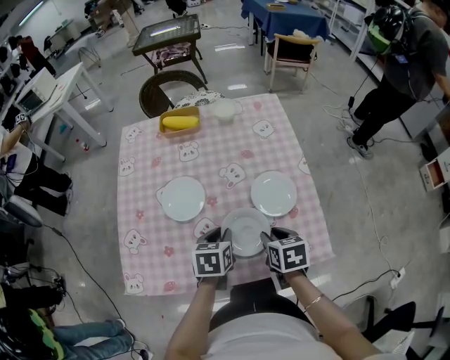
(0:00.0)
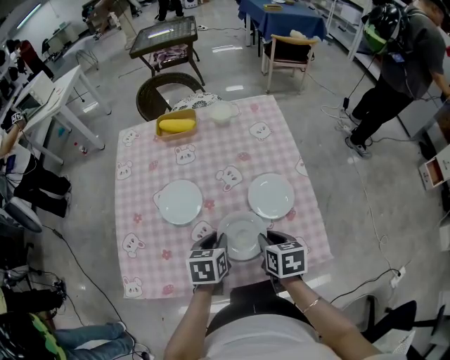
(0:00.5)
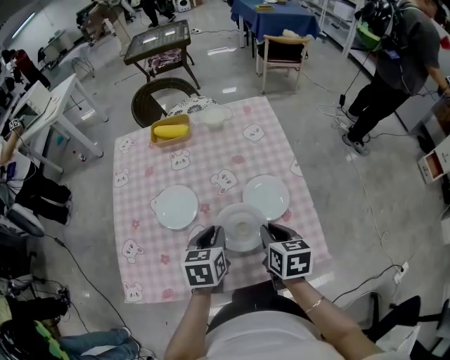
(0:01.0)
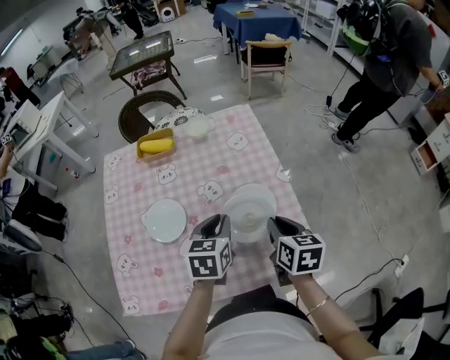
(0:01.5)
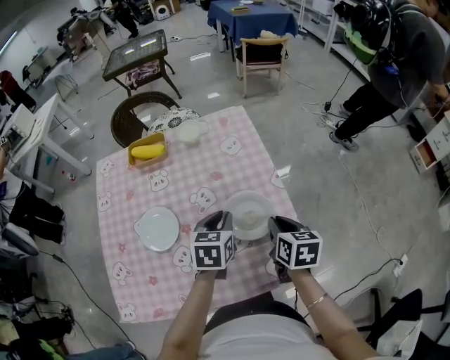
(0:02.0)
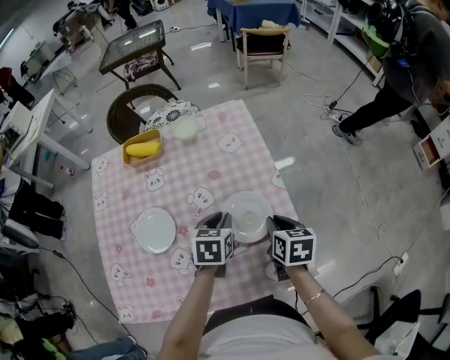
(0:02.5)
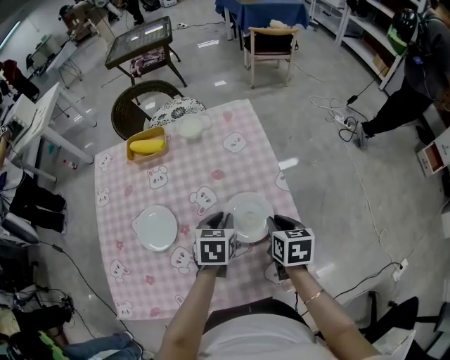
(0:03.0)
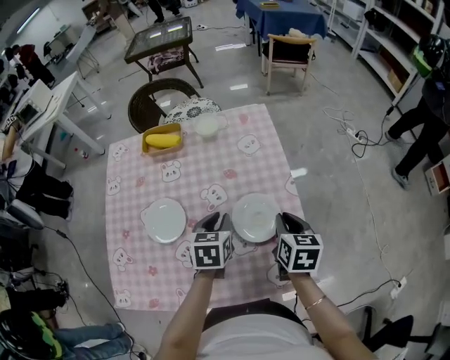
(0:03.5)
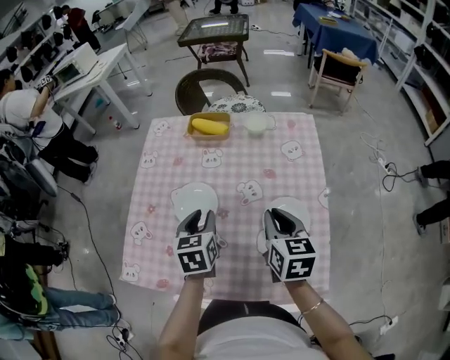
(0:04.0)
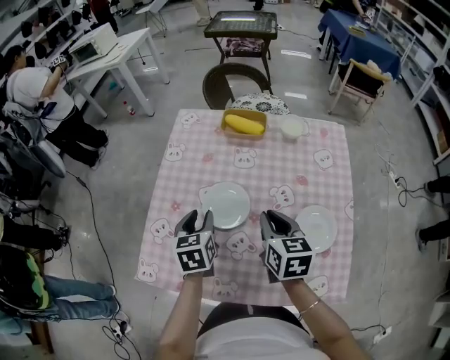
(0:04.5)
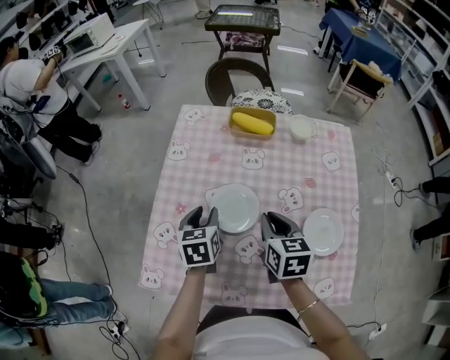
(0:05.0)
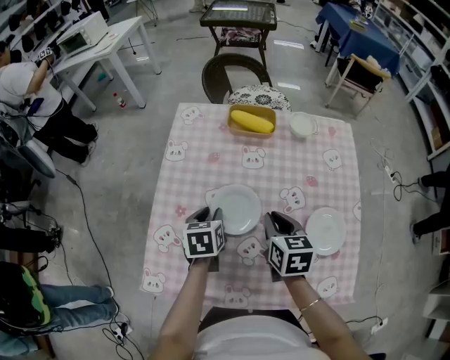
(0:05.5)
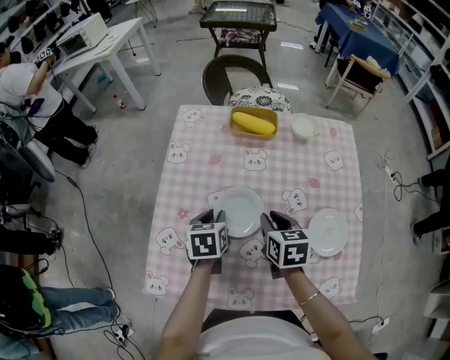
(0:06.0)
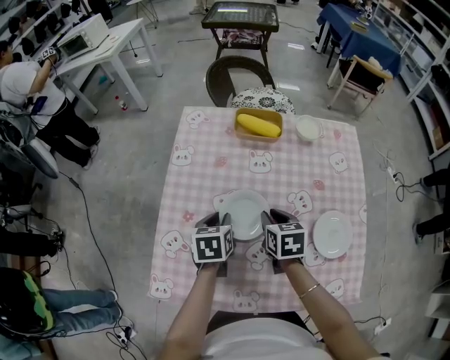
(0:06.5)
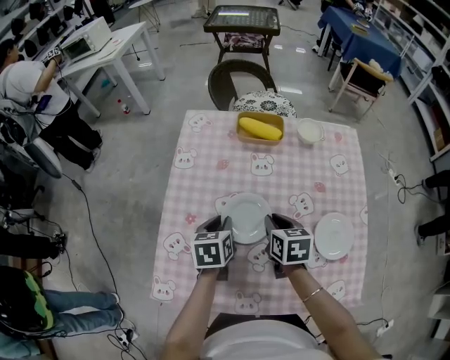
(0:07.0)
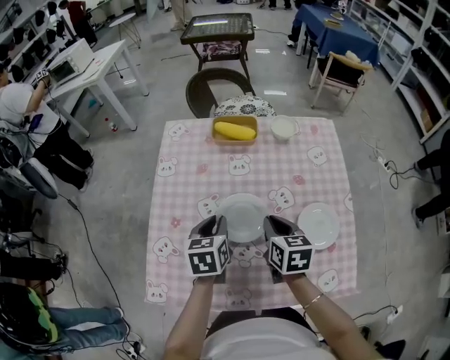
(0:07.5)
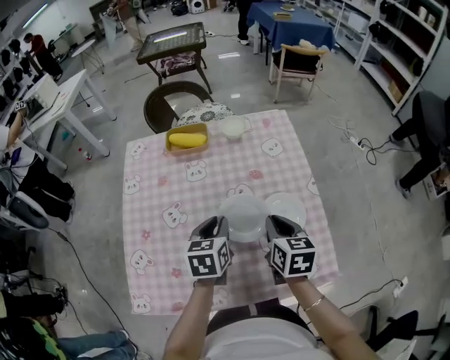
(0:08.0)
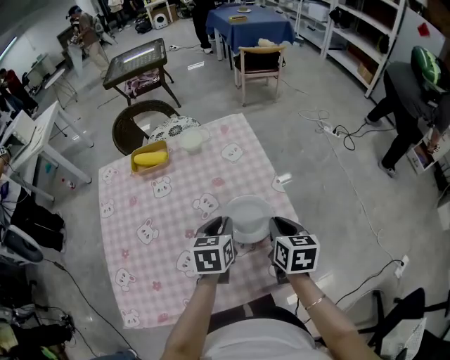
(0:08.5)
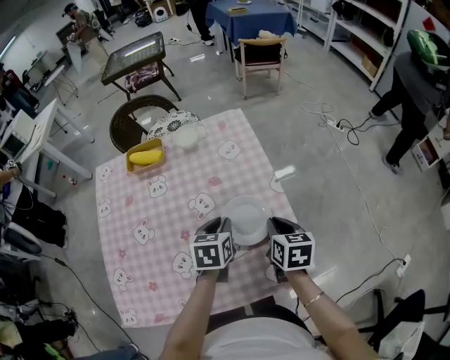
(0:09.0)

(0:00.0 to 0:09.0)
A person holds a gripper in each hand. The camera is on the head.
0:00.0 - 0:02.0: Both grippers move to the right, forward and upward, approximately 15 cm. The right gripper swivels about 20 degrees, and closes up.
0:02.0 - 0:04.5: The right gripper shifts by about 25 cm, and changes its angle by about 30 degrees, while the left gripper changes place by approximately 30 cm, and turns by roughly 40 degrees.
0:04.5 - 0:07.0: The left gripper goes about 5 cm downward, while the right gripper goes some 10 cm downward, forward and to the left.
0:07.0 - 0:09.0: The right gripper moves roughly 35 cm, and changes its angle by roughly 30 degrees, while the left gripper ends up approximately 35 cm from where it was, and turns by roughly 30 degrees.

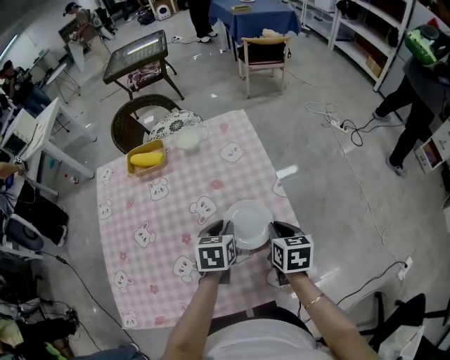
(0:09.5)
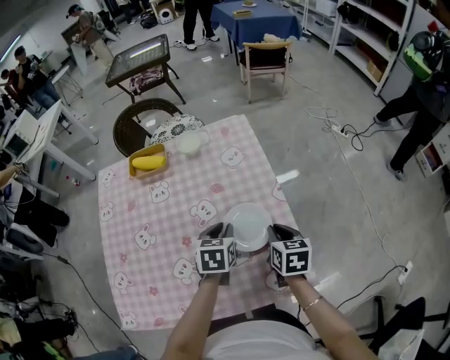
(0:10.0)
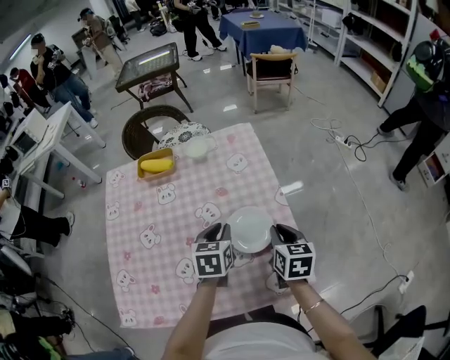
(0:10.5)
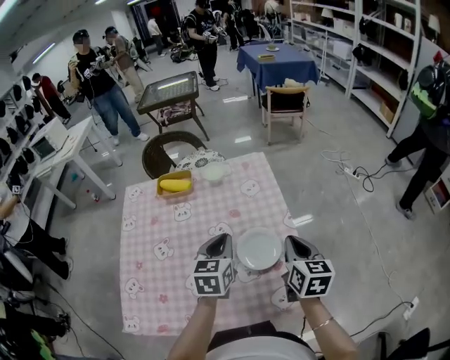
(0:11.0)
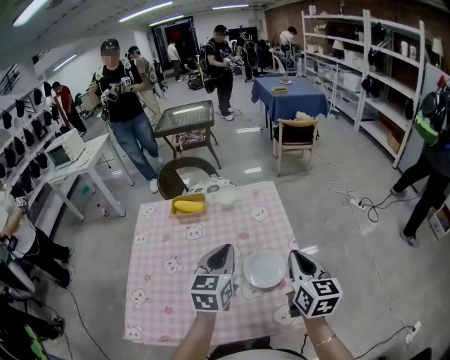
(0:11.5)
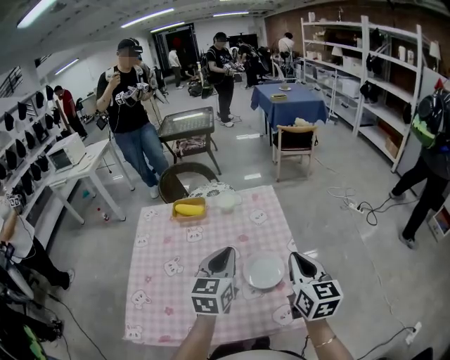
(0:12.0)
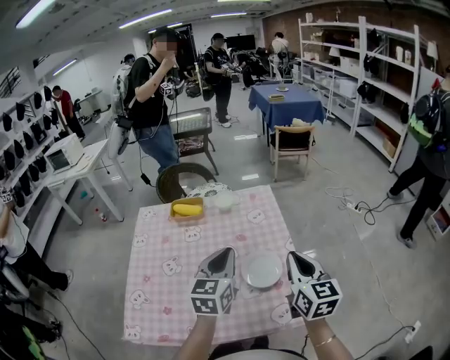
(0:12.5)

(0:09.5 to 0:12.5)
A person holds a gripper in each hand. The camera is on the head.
0:09.5 - 0:11.0: Both grippers move upward, approximately 10 cm. The left gripper changes its angle by approximately 20 degrees, while the right gripper swivels roughly 20 degrees.
0:11.0 - 0:12.5: Both grippers move upward, approximately 10 cm.

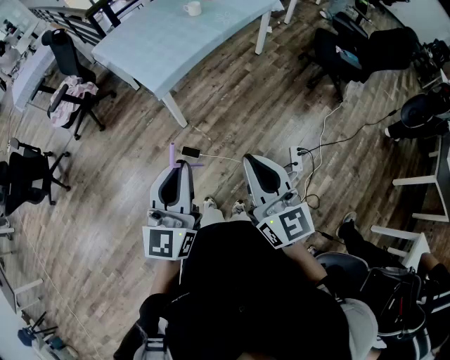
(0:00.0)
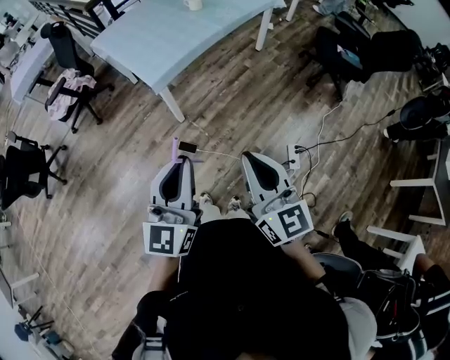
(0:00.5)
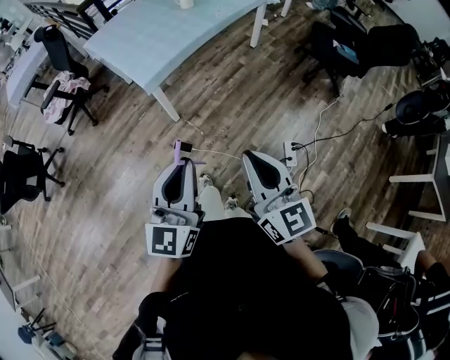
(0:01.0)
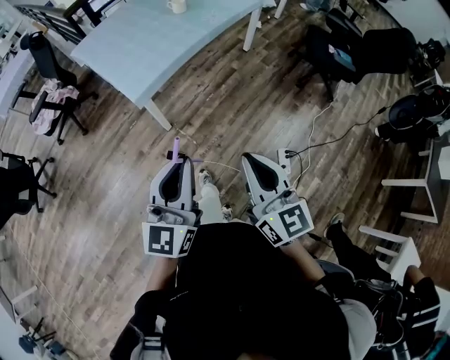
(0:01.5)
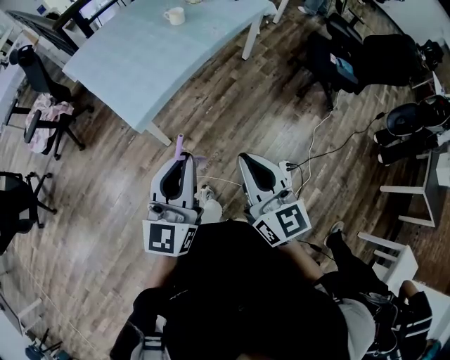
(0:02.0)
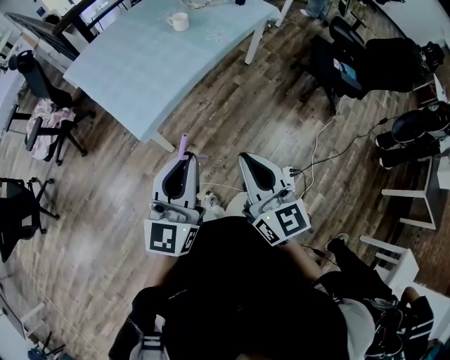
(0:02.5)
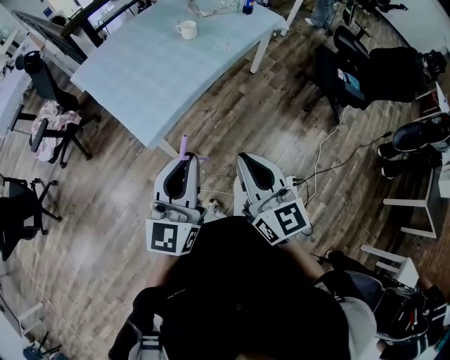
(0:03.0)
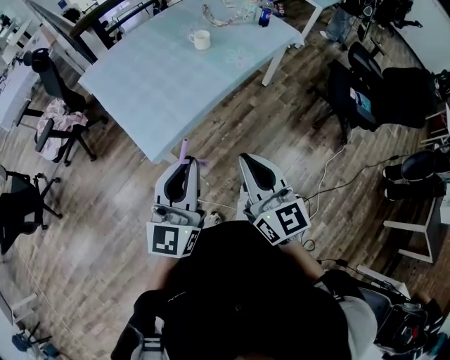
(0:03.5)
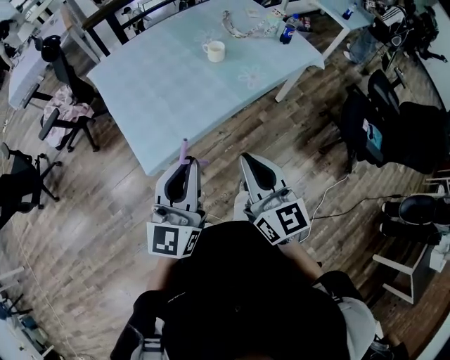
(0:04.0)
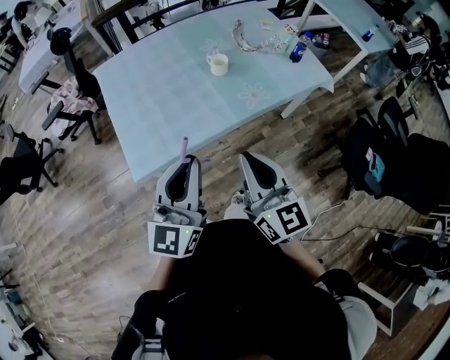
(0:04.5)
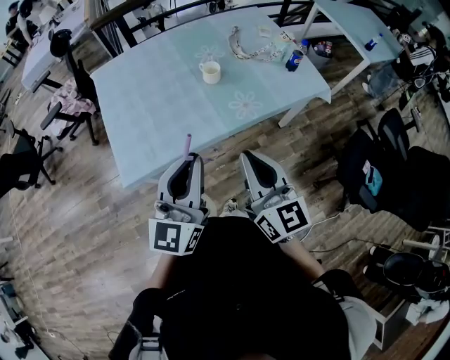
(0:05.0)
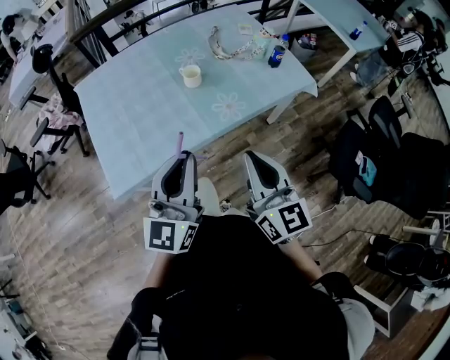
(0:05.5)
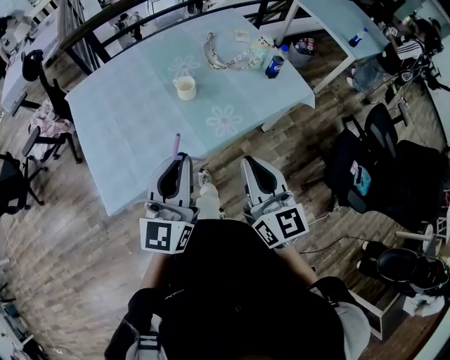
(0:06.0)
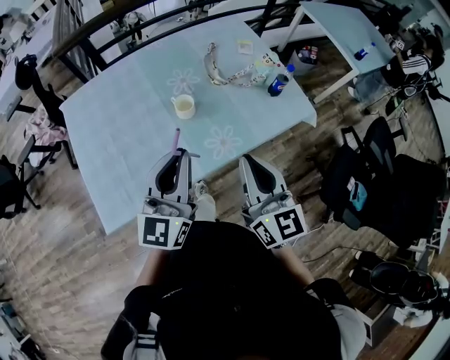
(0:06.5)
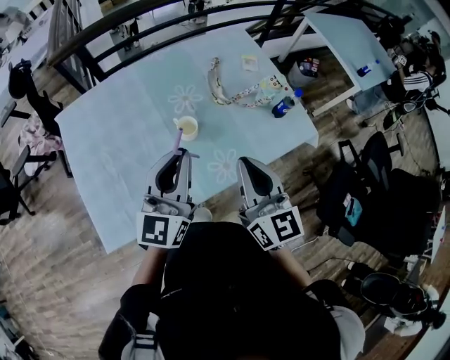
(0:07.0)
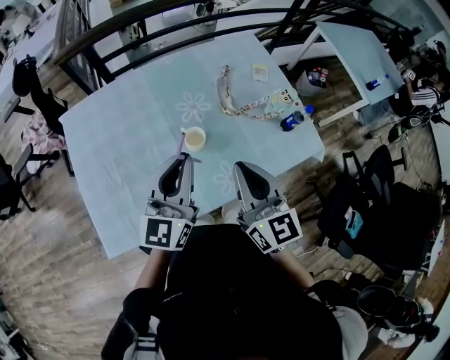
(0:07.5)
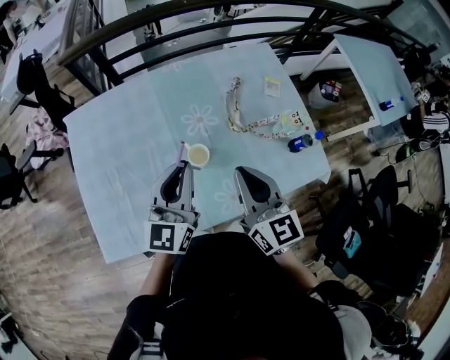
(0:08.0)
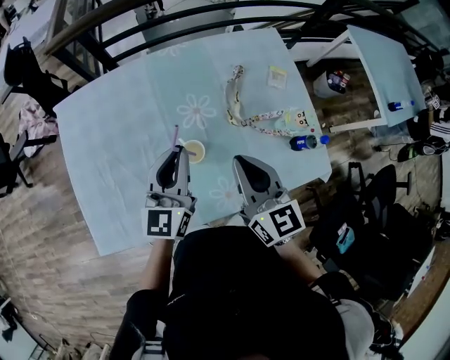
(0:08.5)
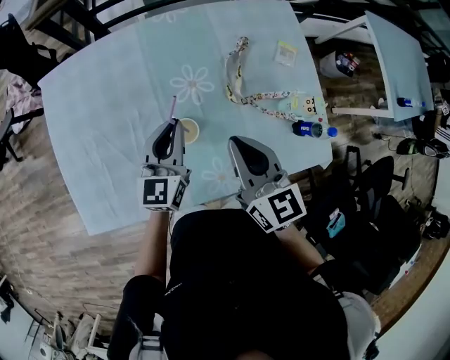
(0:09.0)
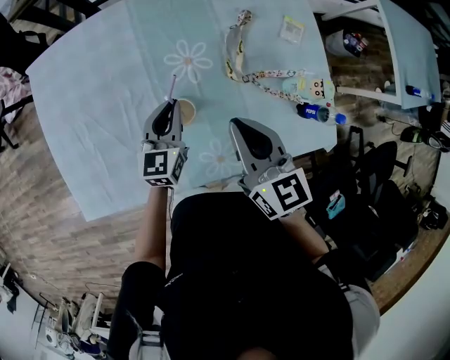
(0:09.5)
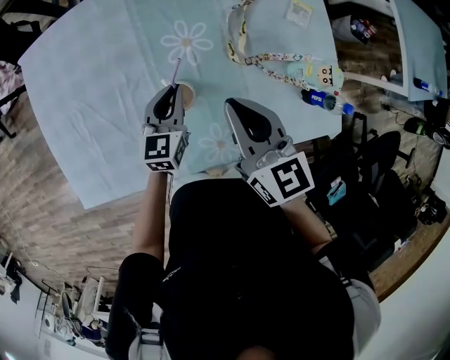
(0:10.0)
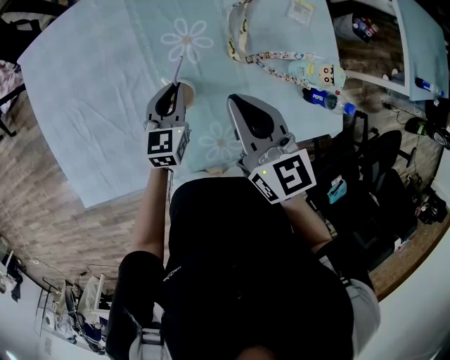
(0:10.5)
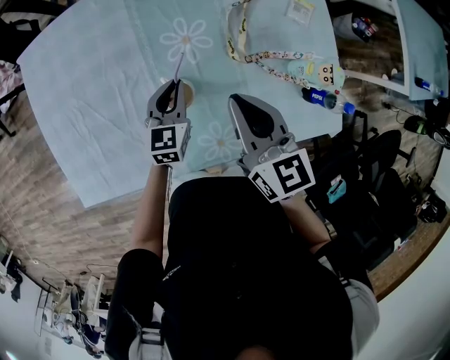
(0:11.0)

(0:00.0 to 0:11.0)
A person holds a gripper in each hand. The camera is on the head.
0:00.0 - 0:02.0: The two grippers go approximately 25 cm forward.
0:02.0 - 0:03.5: The grippers both shift forward by approximately 15 cm.
0:03.5 - 0:05.5: The grippers both shift forward and to the right by about 35 cm.
0:05.5 - 0:07.5: Both grippers travel together forward, some 30 cm.
0:07.5 - 0:09.0: Both grippers move forward and downward, approximately 20 cm. The left gripper swivels approximately 20 degrees.
0:09.0 - 0:11.0: The right gripper changes place by approximately 5 cm, while the left gripper moves downward, about 15 cm.

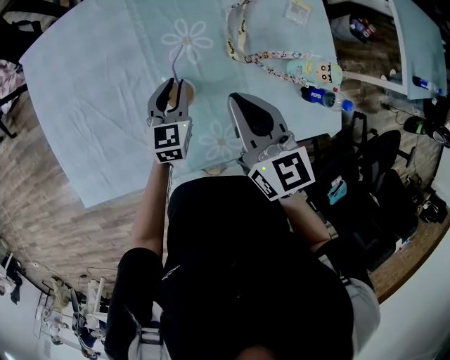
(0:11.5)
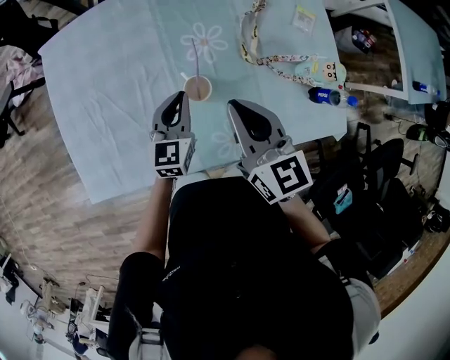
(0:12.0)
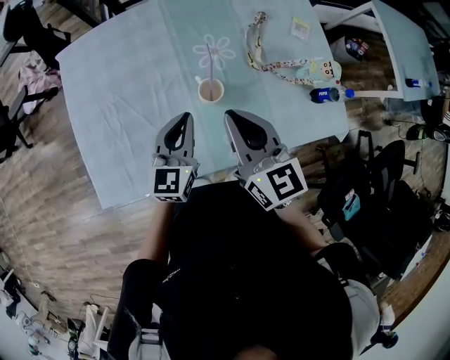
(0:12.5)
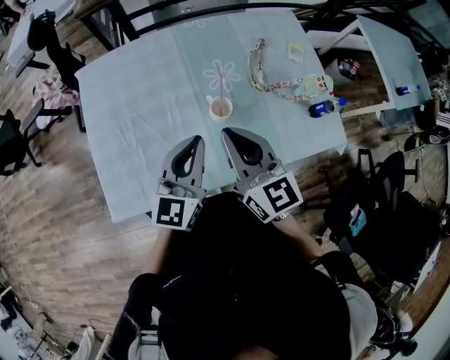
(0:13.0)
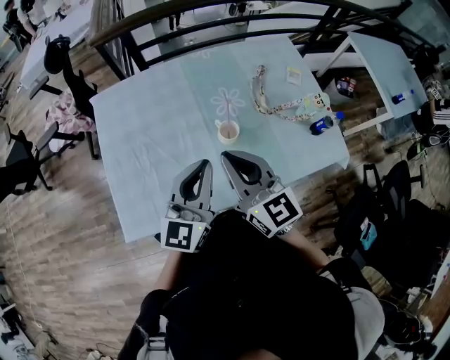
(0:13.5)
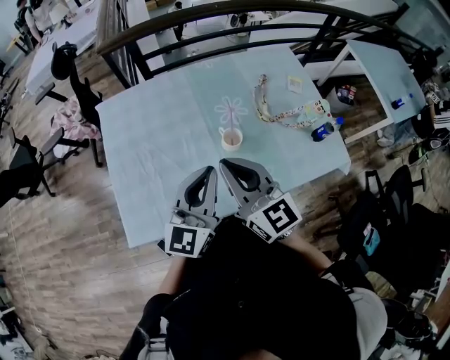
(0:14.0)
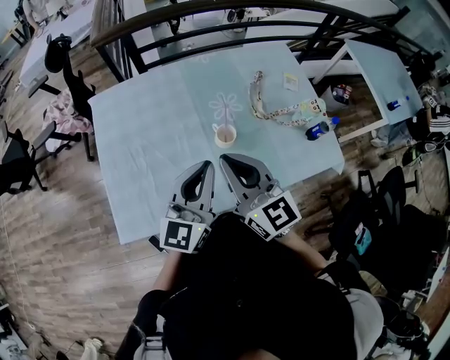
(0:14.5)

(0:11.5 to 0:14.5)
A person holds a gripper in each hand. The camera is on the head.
0:11.5 - 0:13.0: The right gripper travels to the left, backward and upward by some 20 cm. The left gripper heads upward, backward and to the left, covering about 30 cm, and turns by about 30 degrees.
0:13.0 - 0:14.5: The left gripper changes place by approximately 5 cm. The right gripper shifts by approximately 5 cm.
